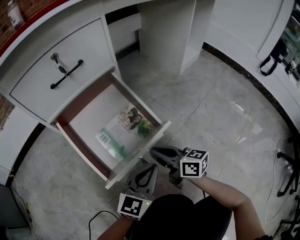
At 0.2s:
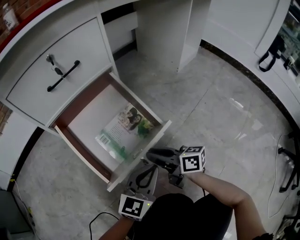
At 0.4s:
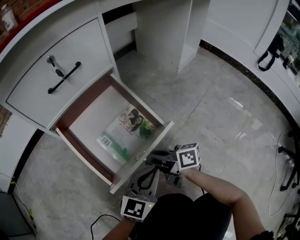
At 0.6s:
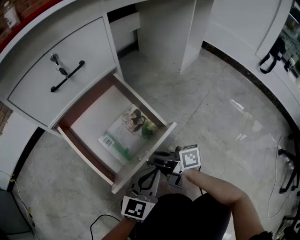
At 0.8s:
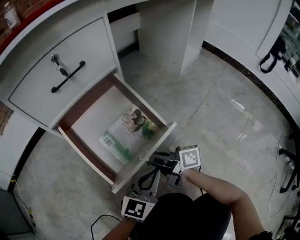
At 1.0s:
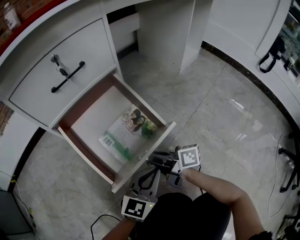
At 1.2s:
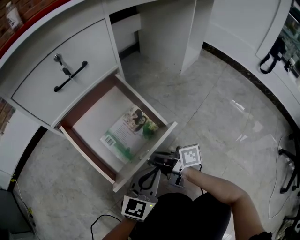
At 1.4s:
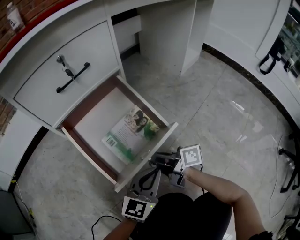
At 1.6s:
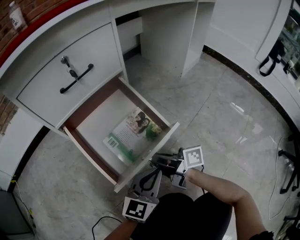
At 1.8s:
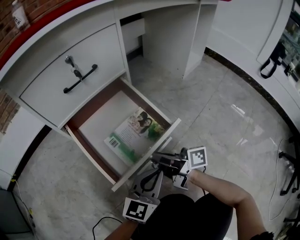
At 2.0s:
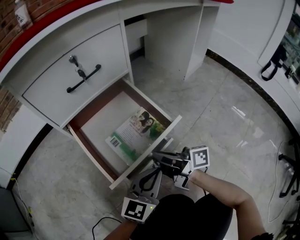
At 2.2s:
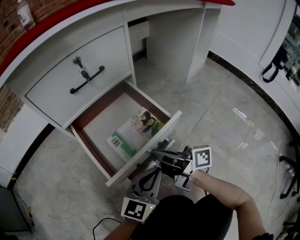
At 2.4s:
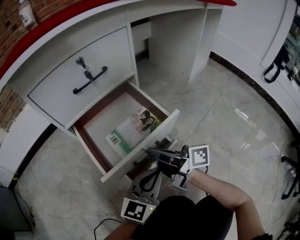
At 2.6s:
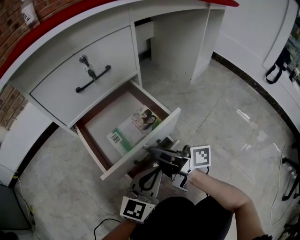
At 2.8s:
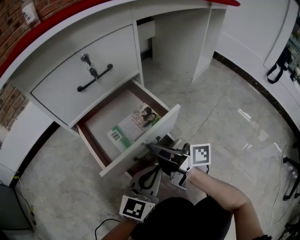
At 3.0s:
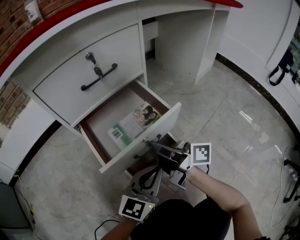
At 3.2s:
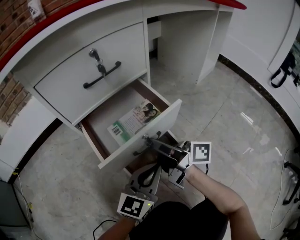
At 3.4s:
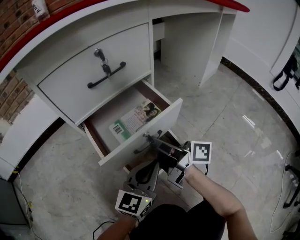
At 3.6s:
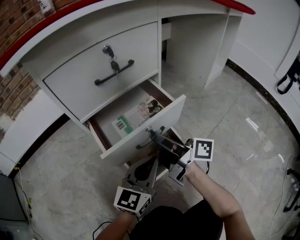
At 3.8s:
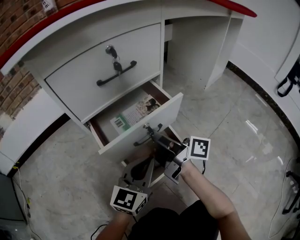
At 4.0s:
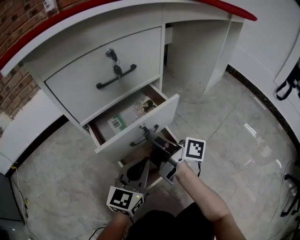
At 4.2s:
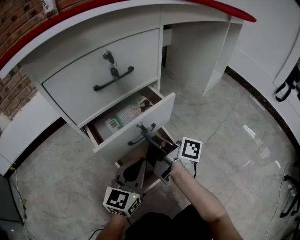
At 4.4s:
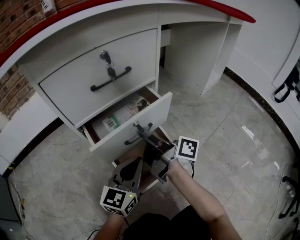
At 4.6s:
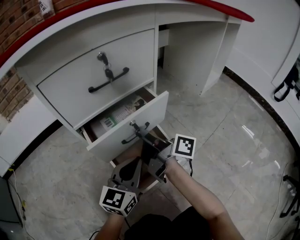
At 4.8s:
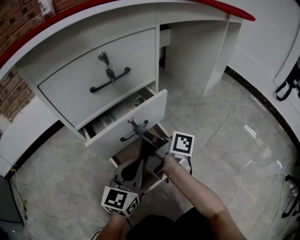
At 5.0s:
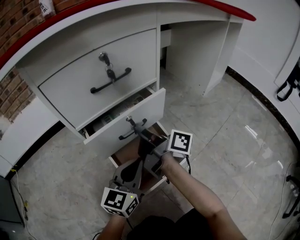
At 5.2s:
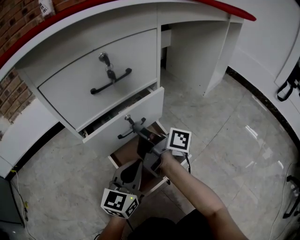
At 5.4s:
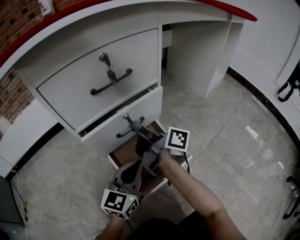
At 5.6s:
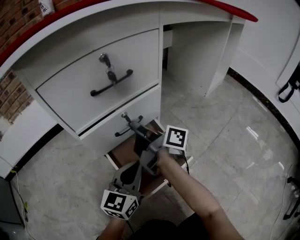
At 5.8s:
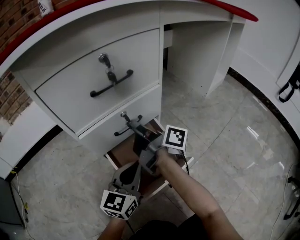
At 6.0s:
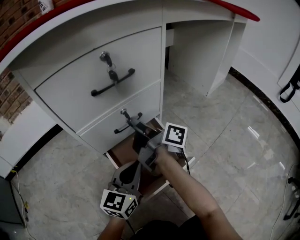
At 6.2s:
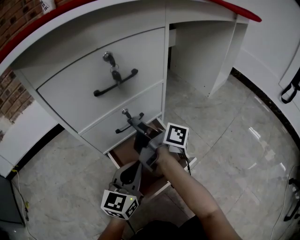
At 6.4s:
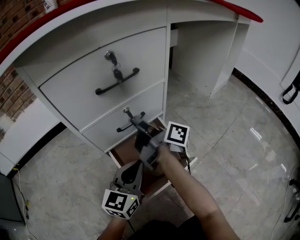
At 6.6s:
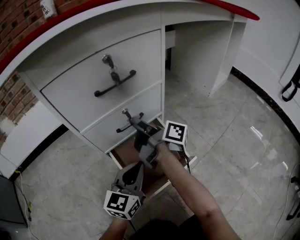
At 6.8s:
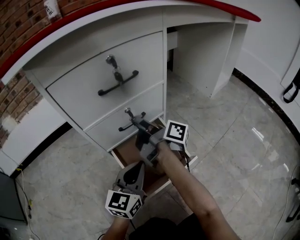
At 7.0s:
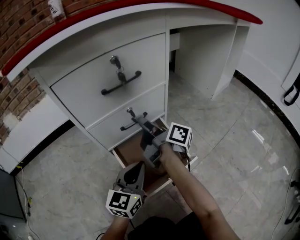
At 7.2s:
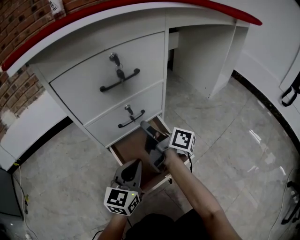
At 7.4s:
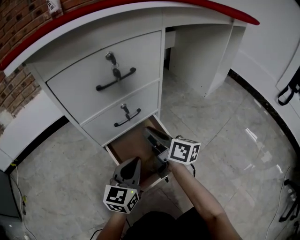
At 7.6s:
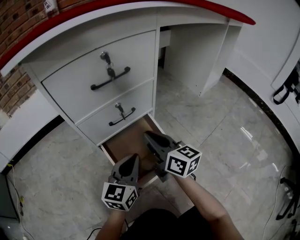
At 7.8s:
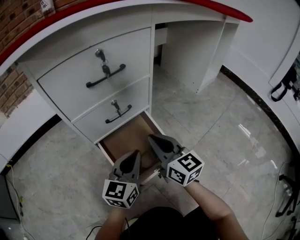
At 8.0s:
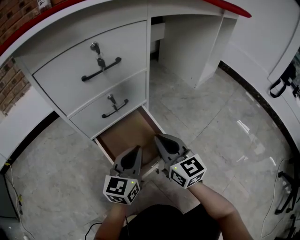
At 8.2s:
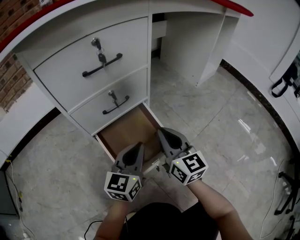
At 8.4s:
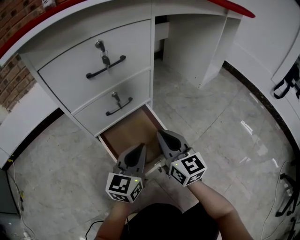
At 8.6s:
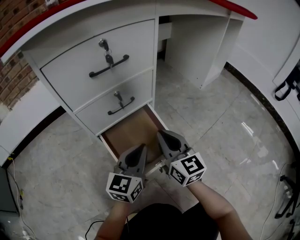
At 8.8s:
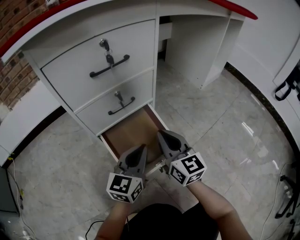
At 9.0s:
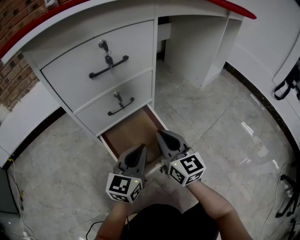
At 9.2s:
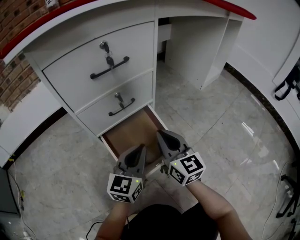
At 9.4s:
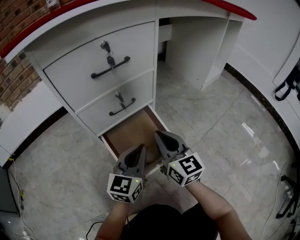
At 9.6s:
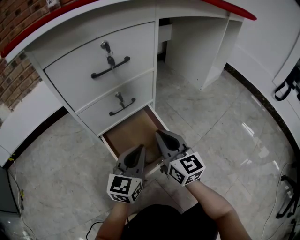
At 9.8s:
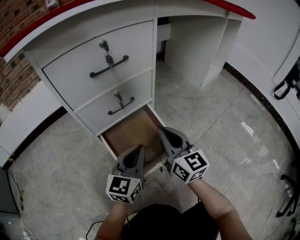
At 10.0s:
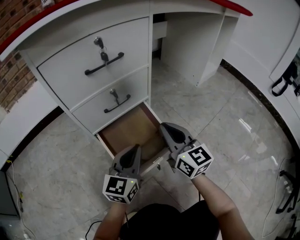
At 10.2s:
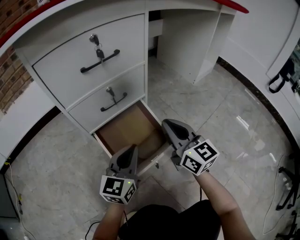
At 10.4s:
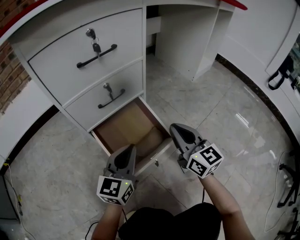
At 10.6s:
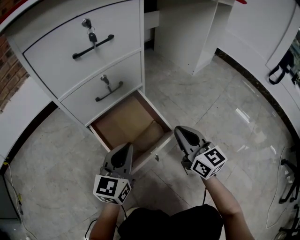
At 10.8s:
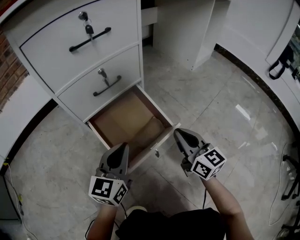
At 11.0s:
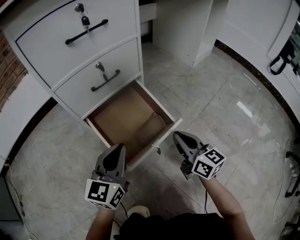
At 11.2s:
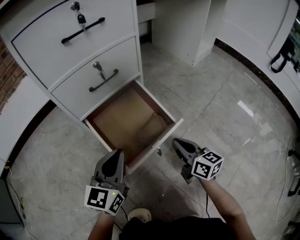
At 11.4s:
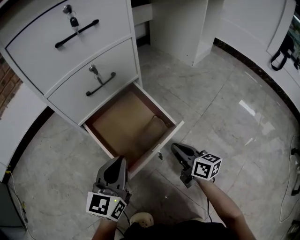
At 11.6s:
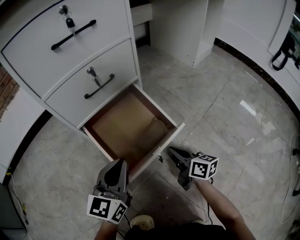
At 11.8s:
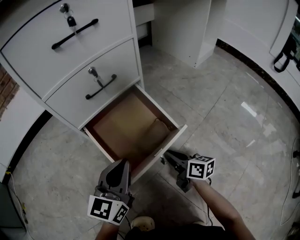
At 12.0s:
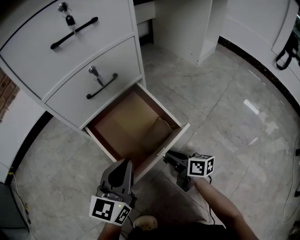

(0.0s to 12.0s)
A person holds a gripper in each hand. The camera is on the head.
0.0s - 1.6s: The right gripper changes its angle by approximately 30 degrees.
1.6s - 3.0s: The right gripper shifts roughly 10 cm upward and forward. The left gripper changes place by some 5 cm.
3.0s - 4.4s: The right gripper moves forward, about 10 cm. Meanwhile the left gripper heads forward and to the left, covering approximately 10 cm.
4.4s - 6.0s: The right gripper moves forward, some 5 cm.
6.0s - 7.6s: The right gripper heads backward and to the right, covering roughly 10 cm, and twists some 50 degrees counterclockwise, seen from behind.
7.6s - 9.0s: The right gripper ends up approximately 5 cm from where it was, and rotates about 20 degrees.
9.0s - 10.4s: The right gripper travels to the right by approximately 5 cm.
10.4s - 12.0s: The right gripper heads downward, covering approximately 25 cm, rotates around the line of its fingers by roughly 40 degrees, clockwise from behind, and opens its fingers; the left gripper moves about 5 cm.

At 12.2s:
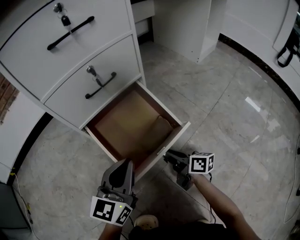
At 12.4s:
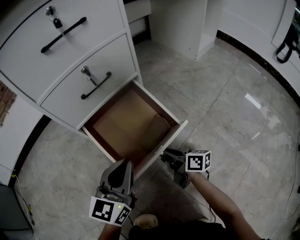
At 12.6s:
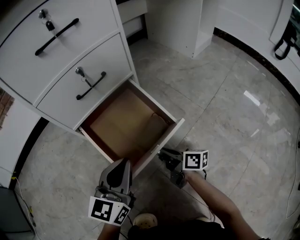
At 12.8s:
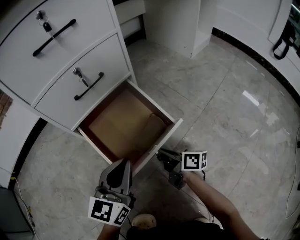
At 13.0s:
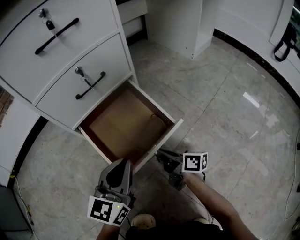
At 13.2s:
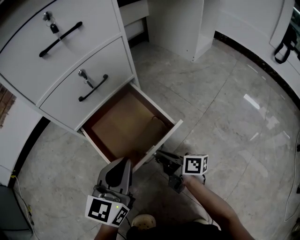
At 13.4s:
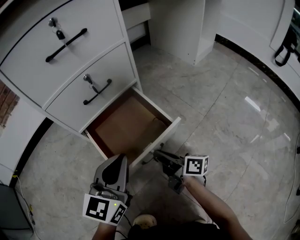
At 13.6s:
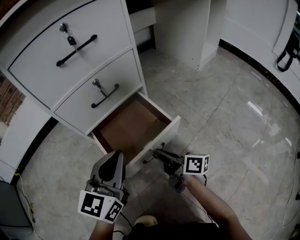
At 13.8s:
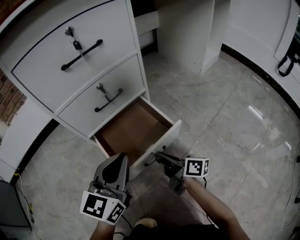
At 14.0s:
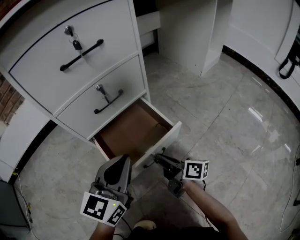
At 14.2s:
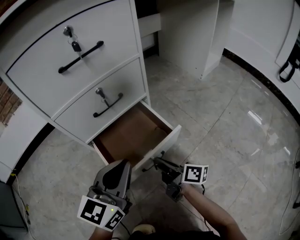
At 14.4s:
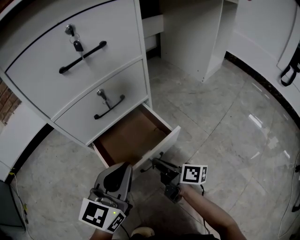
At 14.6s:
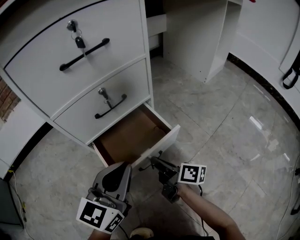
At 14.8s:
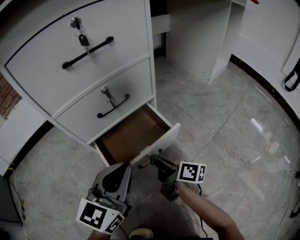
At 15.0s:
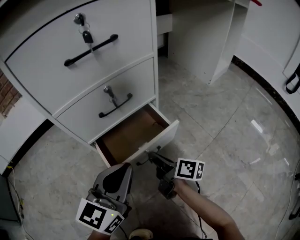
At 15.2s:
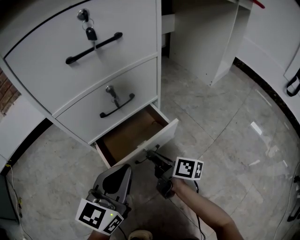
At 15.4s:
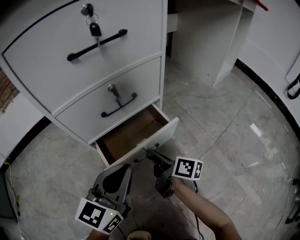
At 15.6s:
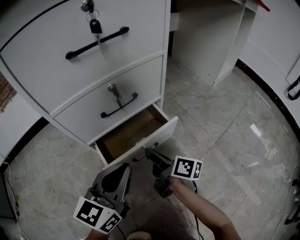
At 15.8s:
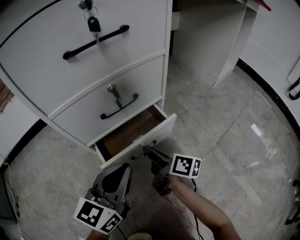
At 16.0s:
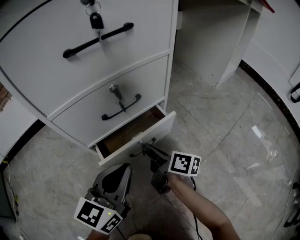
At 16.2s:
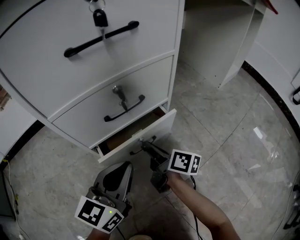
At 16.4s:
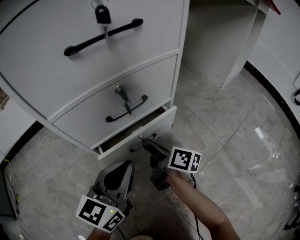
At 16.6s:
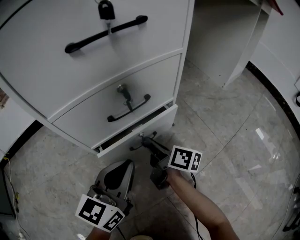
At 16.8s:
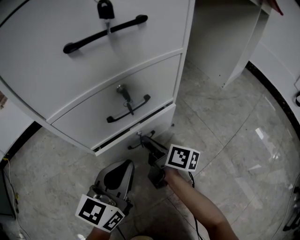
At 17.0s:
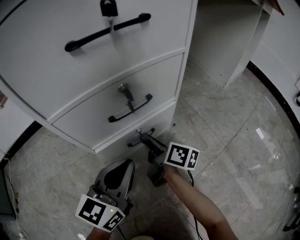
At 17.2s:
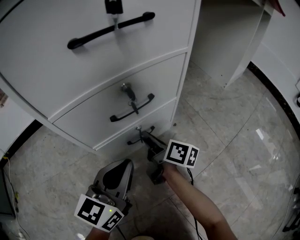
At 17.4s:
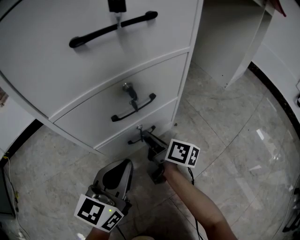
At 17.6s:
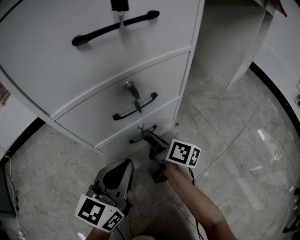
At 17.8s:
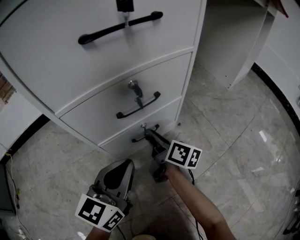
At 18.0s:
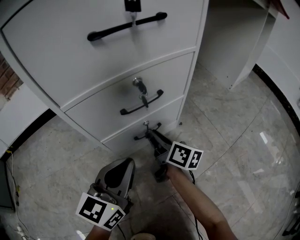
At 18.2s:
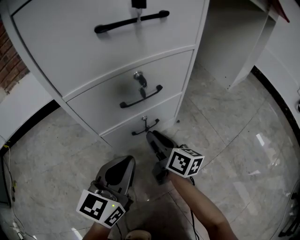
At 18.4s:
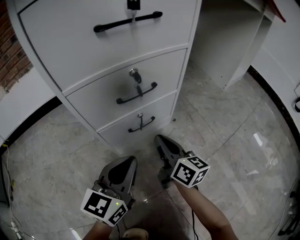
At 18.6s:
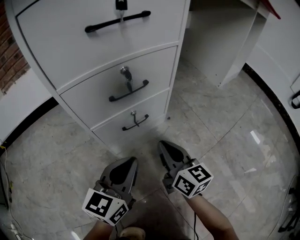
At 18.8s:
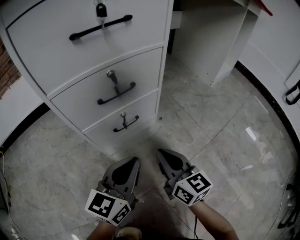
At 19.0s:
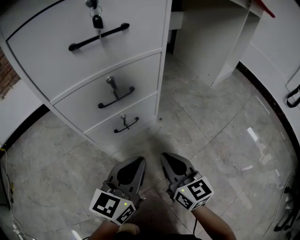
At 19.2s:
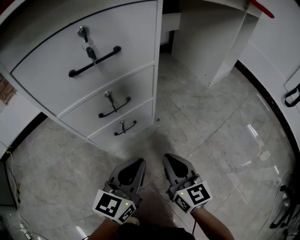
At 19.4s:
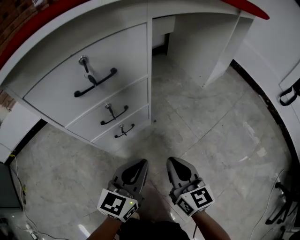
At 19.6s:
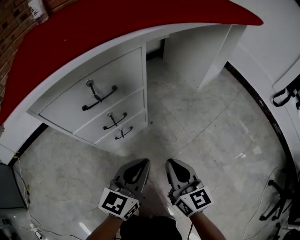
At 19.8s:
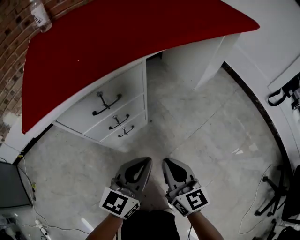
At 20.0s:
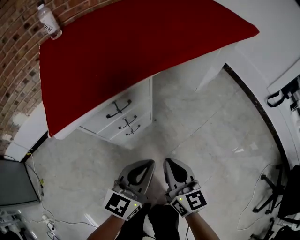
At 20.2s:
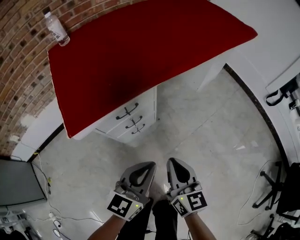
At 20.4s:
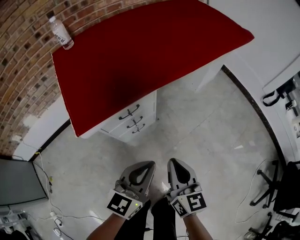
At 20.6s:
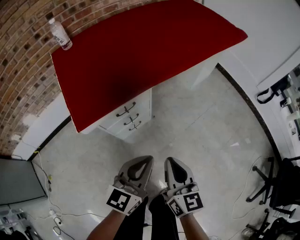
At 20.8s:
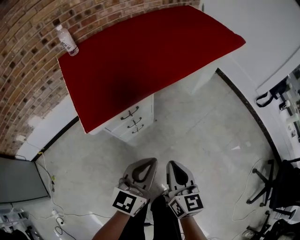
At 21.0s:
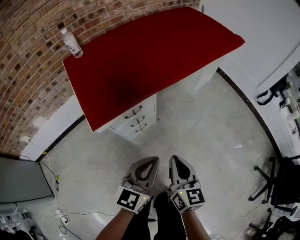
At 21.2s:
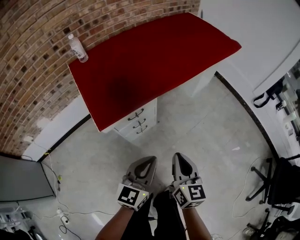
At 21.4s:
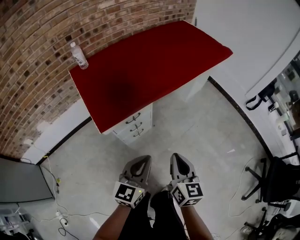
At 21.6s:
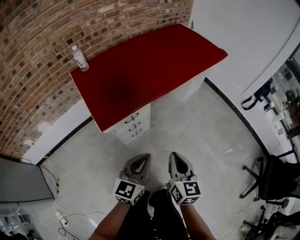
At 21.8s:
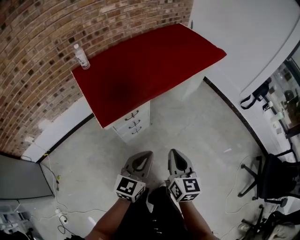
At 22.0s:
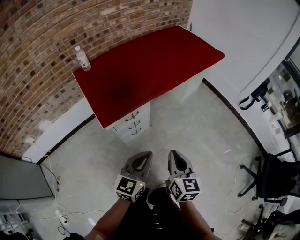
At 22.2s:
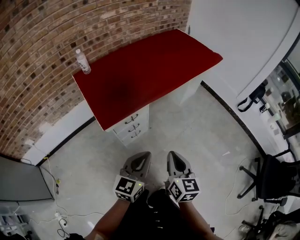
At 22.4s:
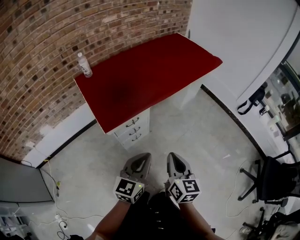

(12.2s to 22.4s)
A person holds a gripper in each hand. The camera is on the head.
12.2s - 13.6s: Both grippers move upward, approximately 5 cm.
13.6s - 15.2s: The right gripper travels forward by approximately 10 cm.
15.2s - 16.6s: The right gripper shifts about 10 cm forward, while the left gripper is displaced forward by about 5 cm.
16.6s - 18.0s: The grippers make only small movements.
18.0s - 19.4s: The right gripper is displaced upward, backward and to the right by some 30 cm, rotates about 40 degrees, and closes; the left gripper heads to the right and upward, covering roughly 15 cm.
19.4s - 21.0s: The grippers both shift upward by some 40 cm.
21.0s - 22.4s: The left gripper travels upward and backward by roughly 15 cm. The right gripper goes roughly 15 cm upward.

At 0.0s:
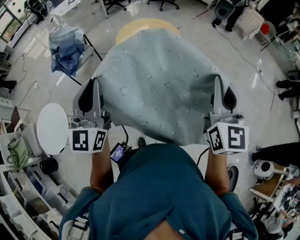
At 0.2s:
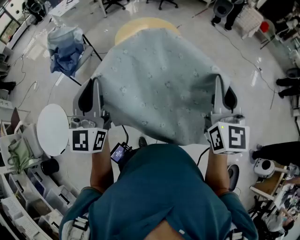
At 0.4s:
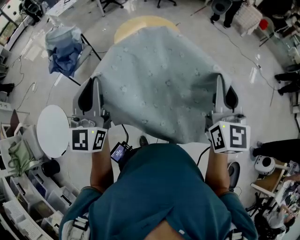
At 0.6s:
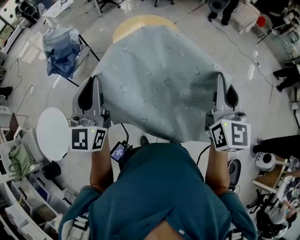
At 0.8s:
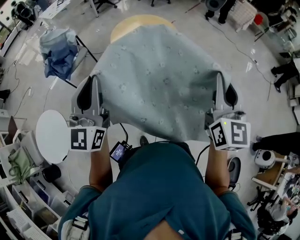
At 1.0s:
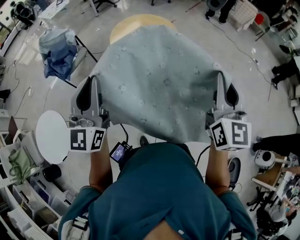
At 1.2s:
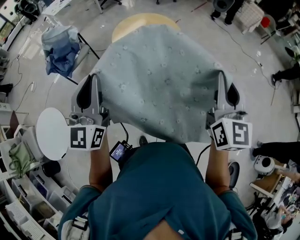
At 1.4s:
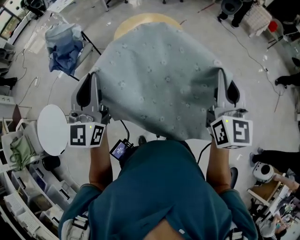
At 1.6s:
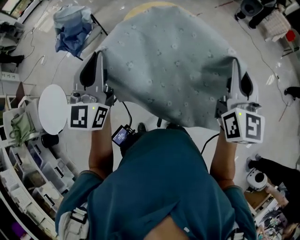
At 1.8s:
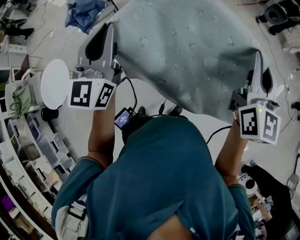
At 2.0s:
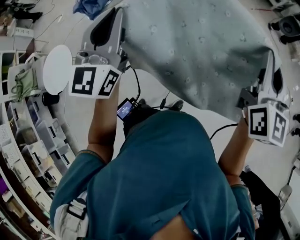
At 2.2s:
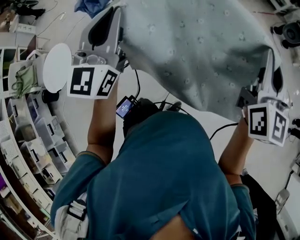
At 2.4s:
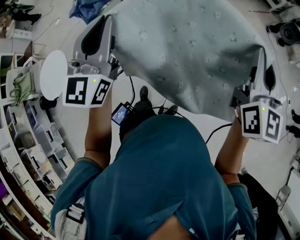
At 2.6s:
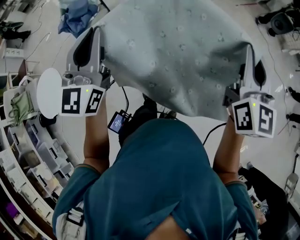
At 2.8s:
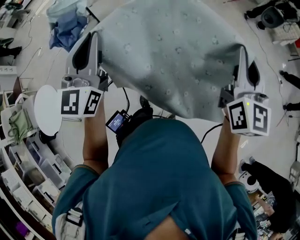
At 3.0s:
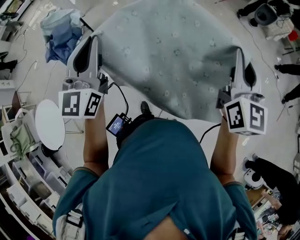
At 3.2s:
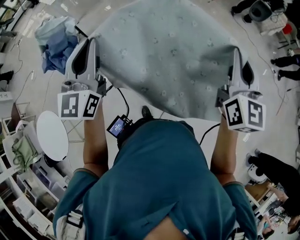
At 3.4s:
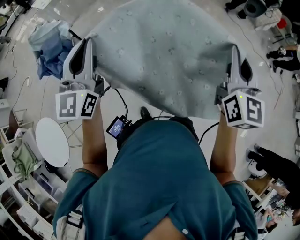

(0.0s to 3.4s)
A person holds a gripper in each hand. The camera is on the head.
0.0s - 1.6s: The grippers both shift forward and to the right by approximately 15 cm.
1.6s - 3.4s: The two grippers go approximately 30 cm forward.
